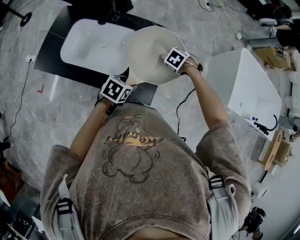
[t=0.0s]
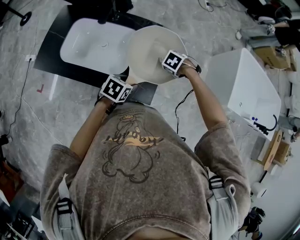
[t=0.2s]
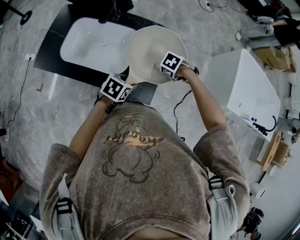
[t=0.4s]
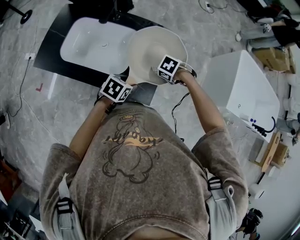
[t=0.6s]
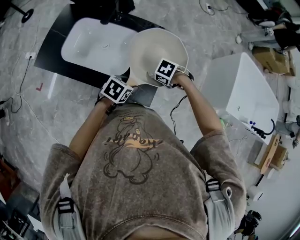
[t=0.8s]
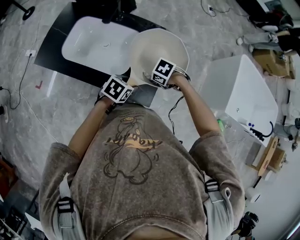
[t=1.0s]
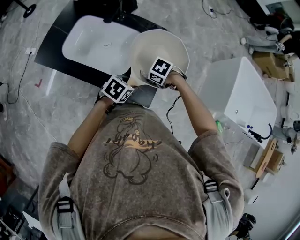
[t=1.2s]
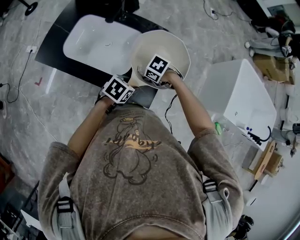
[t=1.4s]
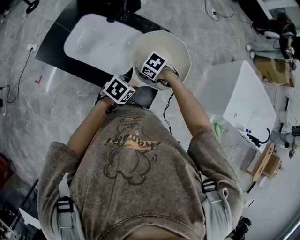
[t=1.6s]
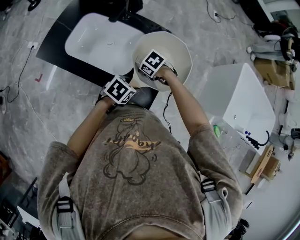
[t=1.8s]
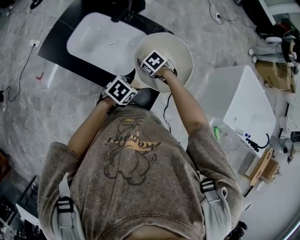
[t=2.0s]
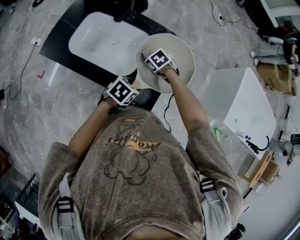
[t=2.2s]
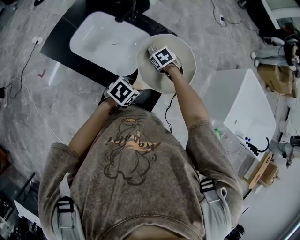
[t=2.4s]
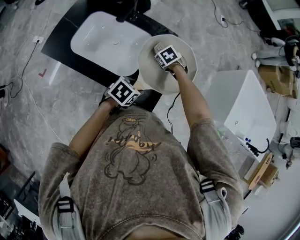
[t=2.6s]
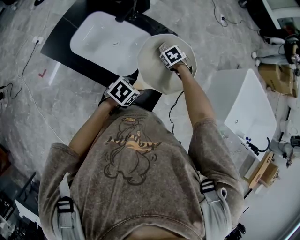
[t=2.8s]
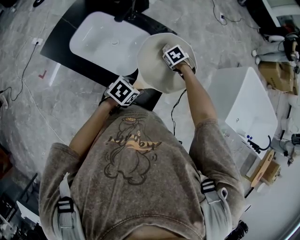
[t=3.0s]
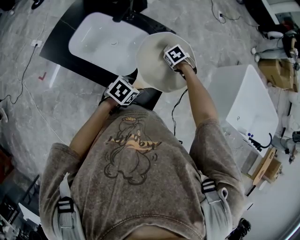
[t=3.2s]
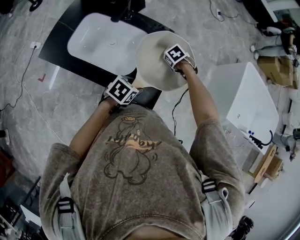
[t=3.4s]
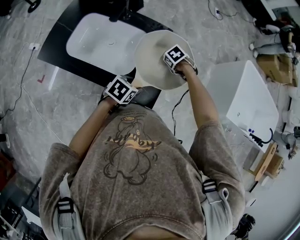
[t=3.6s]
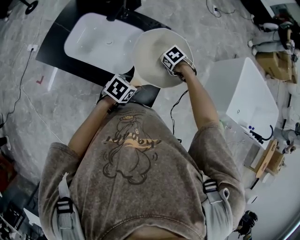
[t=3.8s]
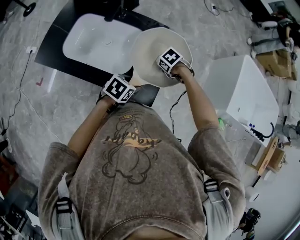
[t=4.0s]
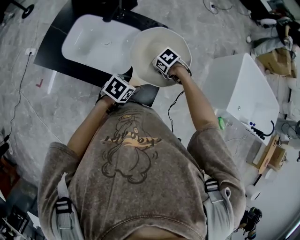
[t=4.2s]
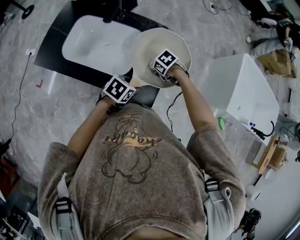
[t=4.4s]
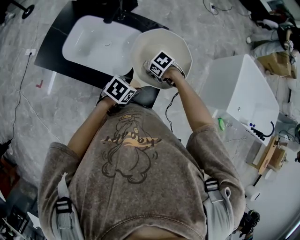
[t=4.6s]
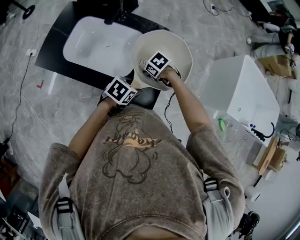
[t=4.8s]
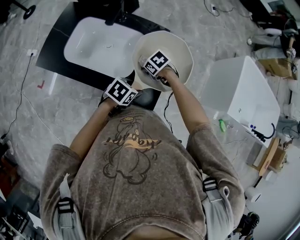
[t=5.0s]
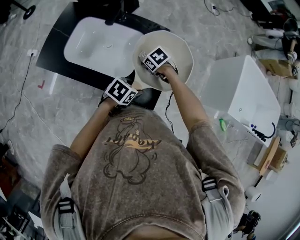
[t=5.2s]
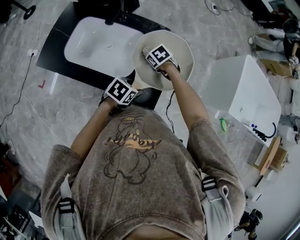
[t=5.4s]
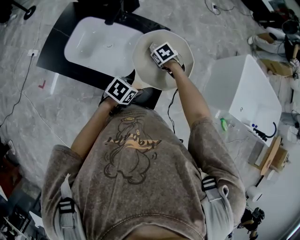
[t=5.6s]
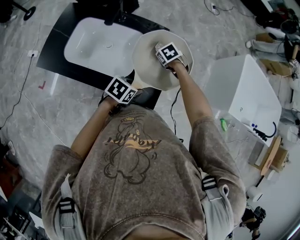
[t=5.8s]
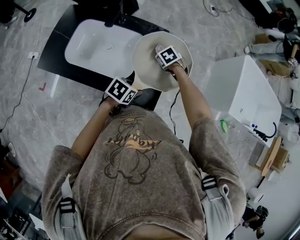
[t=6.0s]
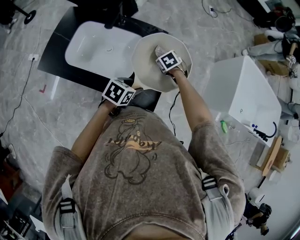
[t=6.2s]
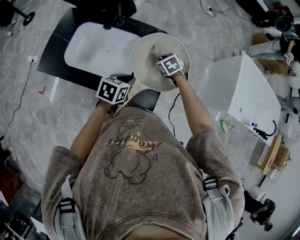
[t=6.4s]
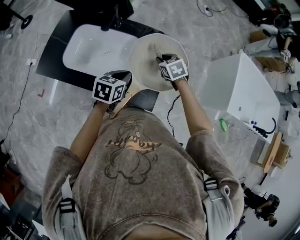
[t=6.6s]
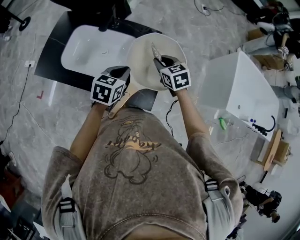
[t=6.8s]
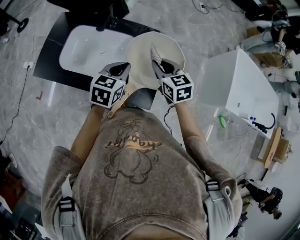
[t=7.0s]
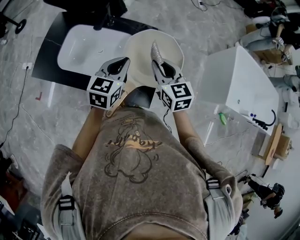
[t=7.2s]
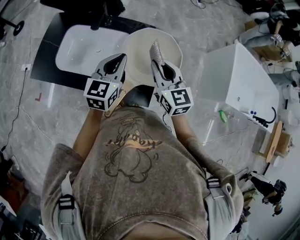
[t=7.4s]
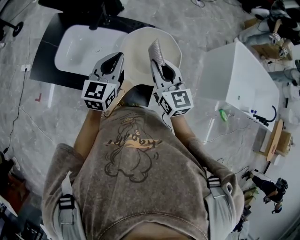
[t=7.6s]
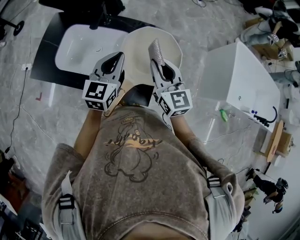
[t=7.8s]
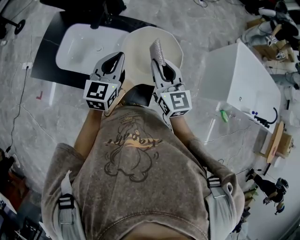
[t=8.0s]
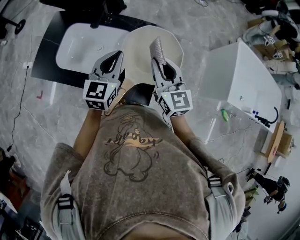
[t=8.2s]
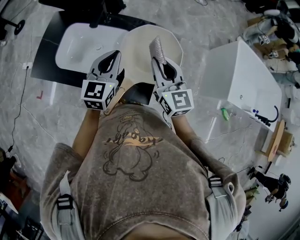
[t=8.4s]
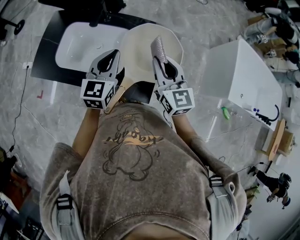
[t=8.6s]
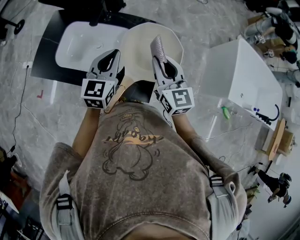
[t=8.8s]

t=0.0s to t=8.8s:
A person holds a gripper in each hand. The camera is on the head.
t=0.0s to t=1.4s: The right gripper changes place by approximately 20 cm, and swivels approximately 30 degrees.
t=1.4s to t=3.0s: The right gripper changes place by roughly 15 cm, and swivels roughly 30 degrees.
t=3.0s to t=4.4s: The right gripper ends up approximately 10 cm from where it was, and swivels some 20 degrees.
t=4.4s to t=5.8s: The right gripper ends up approximately 10 cm from where it was, and swivels roughly 20 degrees.
t=5.8s to t=7.4s: Both grippers travel together upward, approximately 20 cm. The left gripper angles its fingers upward, by about 40 degrees, and closes; the right gripper tilts its fingers approximately 60 degrees upward.
t=7.4s to t=8.8s: There are only small adjustments of the grippers.

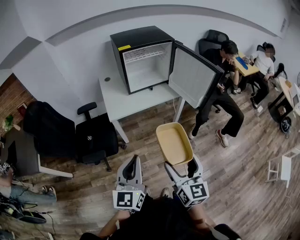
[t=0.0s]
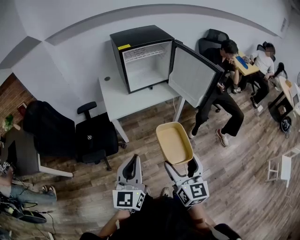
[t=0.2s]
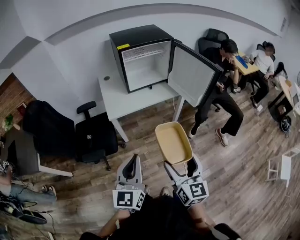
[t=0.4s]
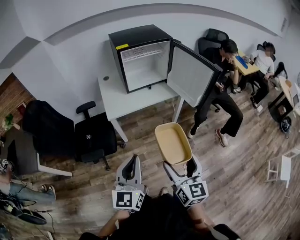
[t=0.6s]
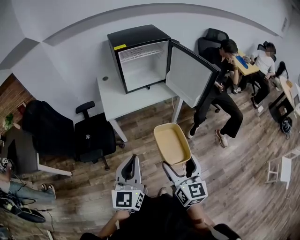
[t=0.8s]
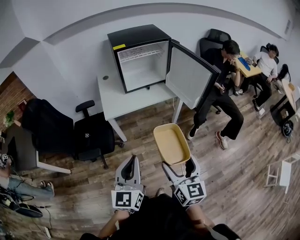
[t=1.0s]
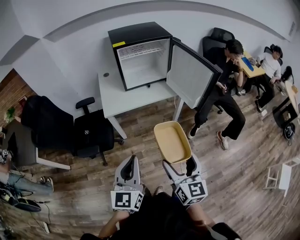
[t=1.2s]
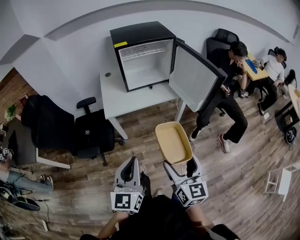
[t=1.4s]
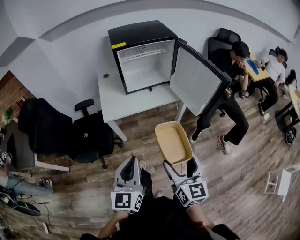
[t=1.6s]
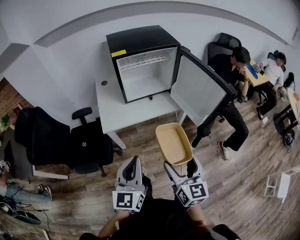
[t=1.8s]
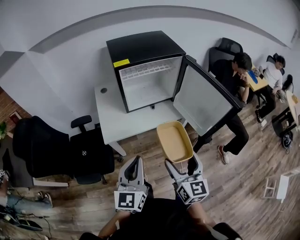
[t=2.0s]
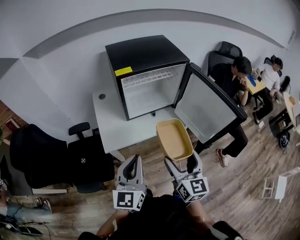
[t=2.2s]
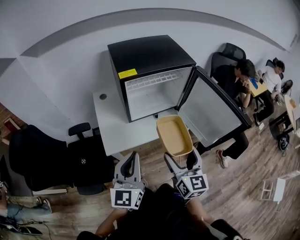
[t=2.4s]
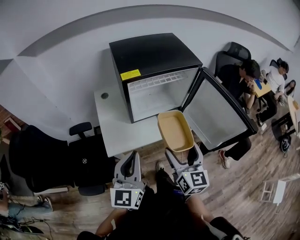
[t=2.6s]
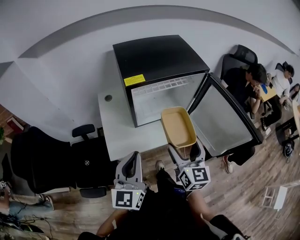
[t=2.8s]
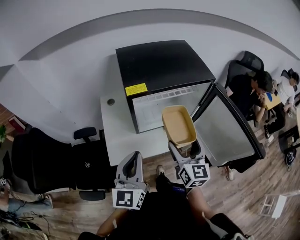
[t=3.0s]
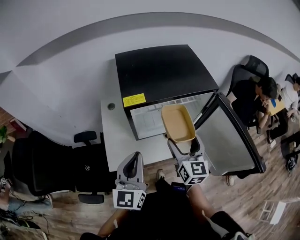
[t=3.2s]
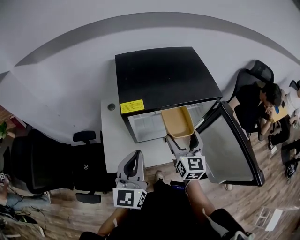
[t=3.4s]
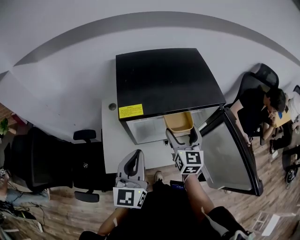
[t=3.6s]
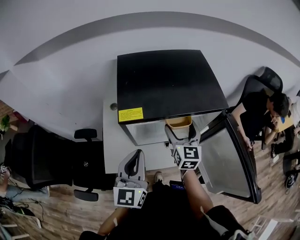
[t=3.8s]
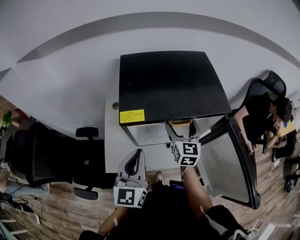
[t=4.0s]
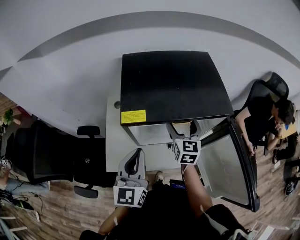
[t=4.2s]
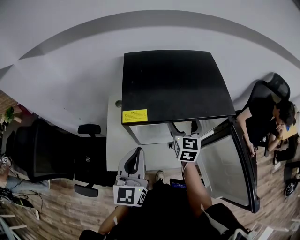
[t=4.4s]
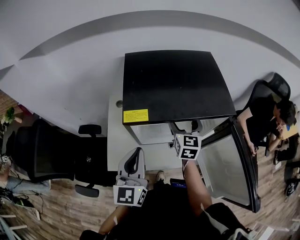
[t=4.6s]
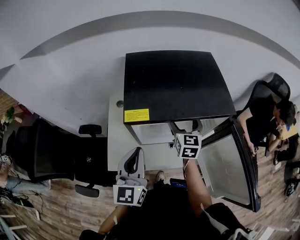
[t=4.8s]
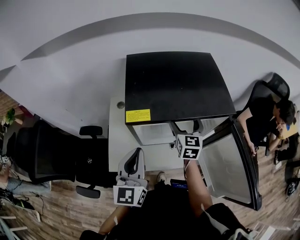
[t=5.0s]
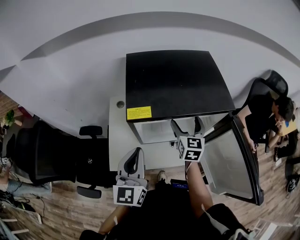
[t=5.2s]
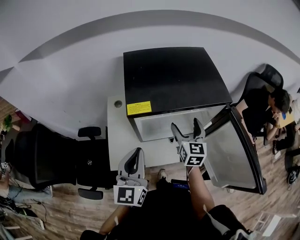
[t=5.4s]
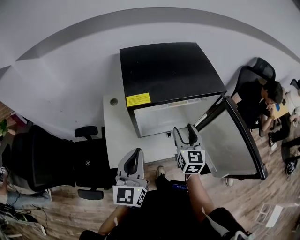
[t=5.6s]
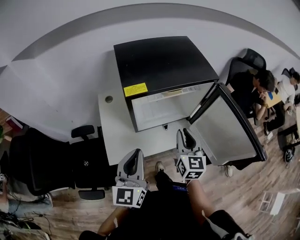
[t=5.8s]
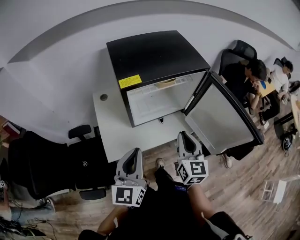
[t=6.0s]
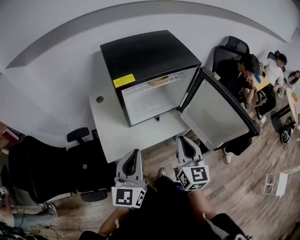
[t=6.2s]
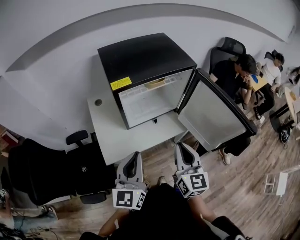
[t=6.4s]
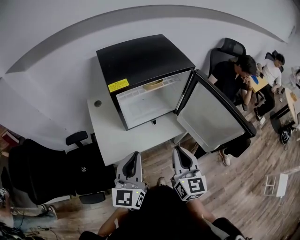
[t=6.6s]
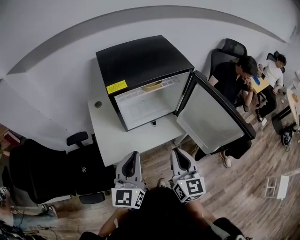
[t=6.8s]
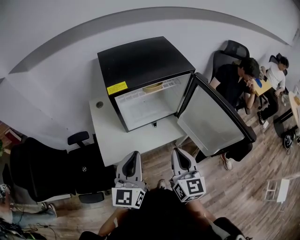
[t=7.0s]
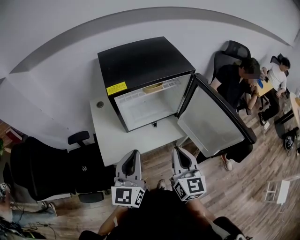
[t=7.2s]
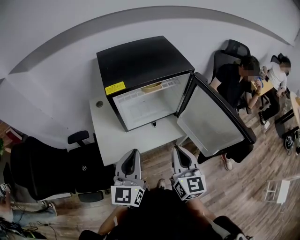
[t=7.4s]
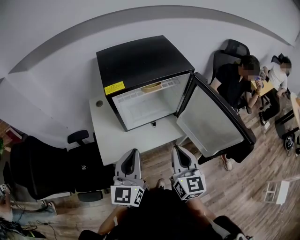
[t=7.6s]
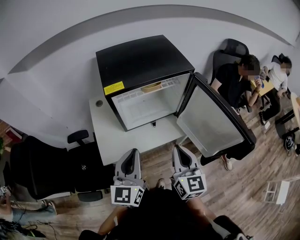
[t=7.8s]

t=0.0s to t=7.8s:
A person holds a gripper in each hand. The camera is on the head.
t=0.0s to t=1.6s: The two grippers go some 10 cm forward and to the right.
t=1.6s to t=3.2s: The pair of grippers is taken forward, roughly 50 cm.
t=3.2s to t=4.6s: The right gripper travels forward by some 20 cm. Meanwhile the left gripper travels forward by some 10 cm.
t=4.6s to t=6.2s: The left gripper is displaced backward by roughly 15 cm, and changes its angle by some 20 degrees. Meanwhile the right gripper travels backward by approximately 35 cm, and closes its fingers.
t=6.2s to t=7.8s: The left gripper shifts by about 5 cm.

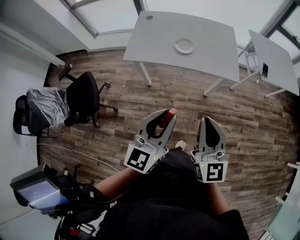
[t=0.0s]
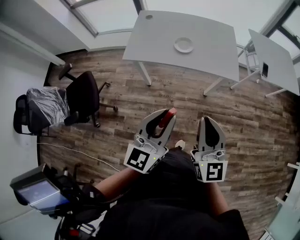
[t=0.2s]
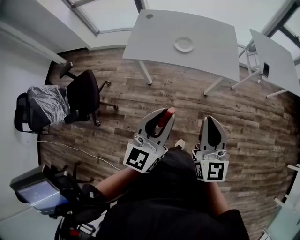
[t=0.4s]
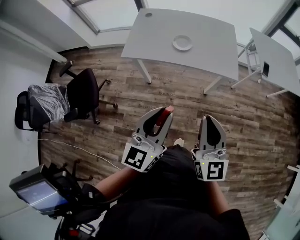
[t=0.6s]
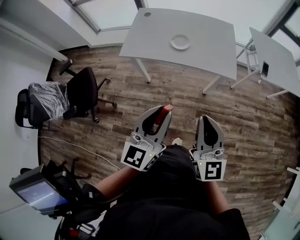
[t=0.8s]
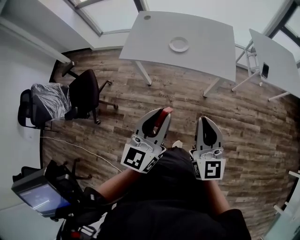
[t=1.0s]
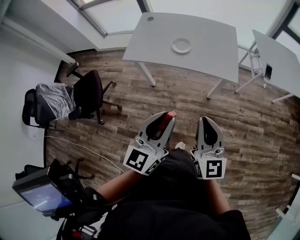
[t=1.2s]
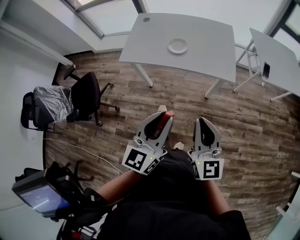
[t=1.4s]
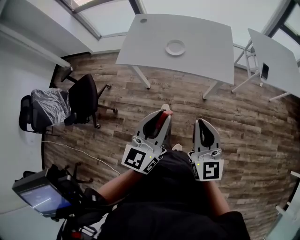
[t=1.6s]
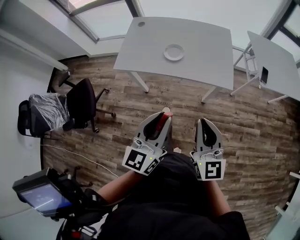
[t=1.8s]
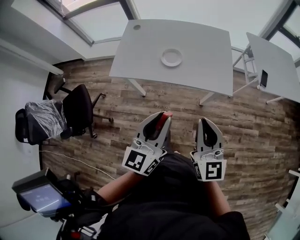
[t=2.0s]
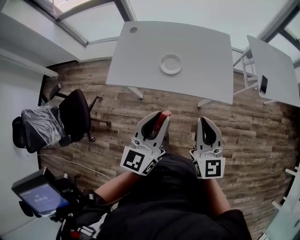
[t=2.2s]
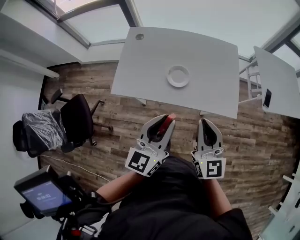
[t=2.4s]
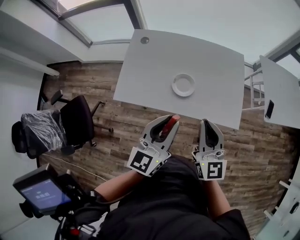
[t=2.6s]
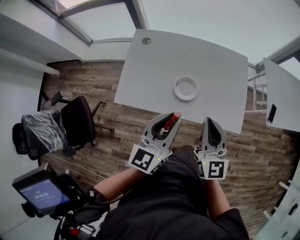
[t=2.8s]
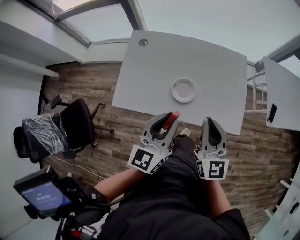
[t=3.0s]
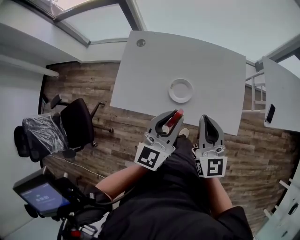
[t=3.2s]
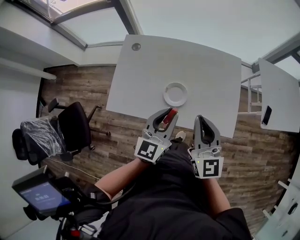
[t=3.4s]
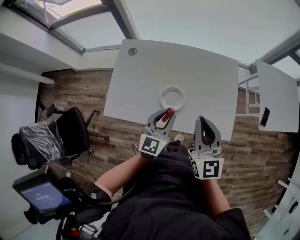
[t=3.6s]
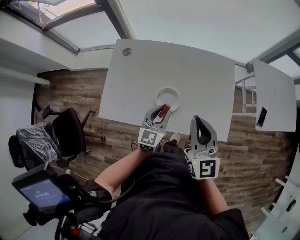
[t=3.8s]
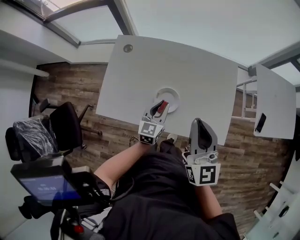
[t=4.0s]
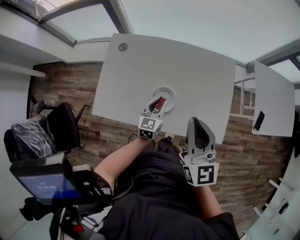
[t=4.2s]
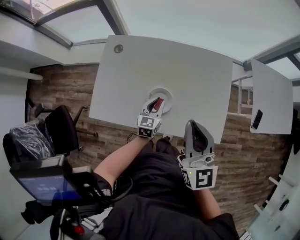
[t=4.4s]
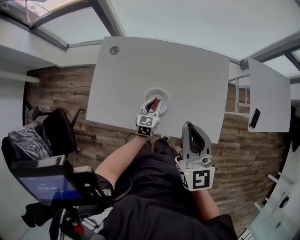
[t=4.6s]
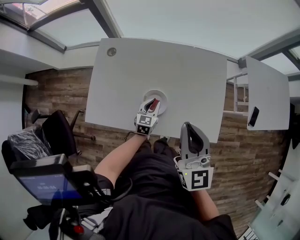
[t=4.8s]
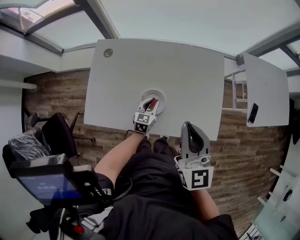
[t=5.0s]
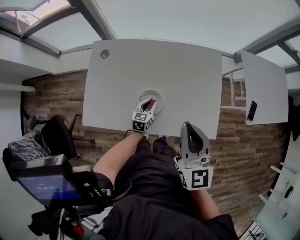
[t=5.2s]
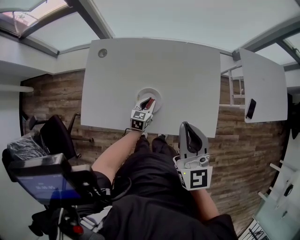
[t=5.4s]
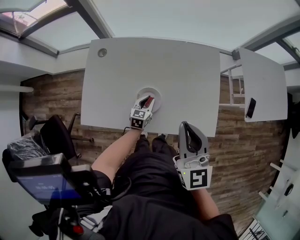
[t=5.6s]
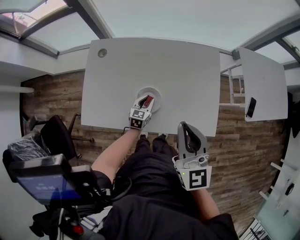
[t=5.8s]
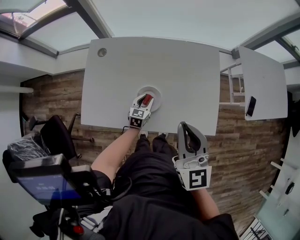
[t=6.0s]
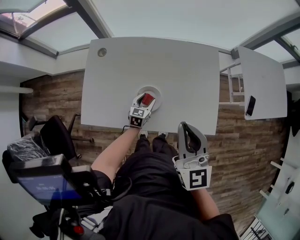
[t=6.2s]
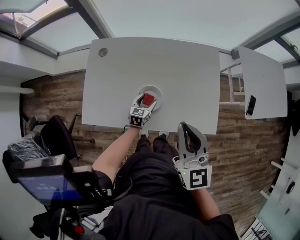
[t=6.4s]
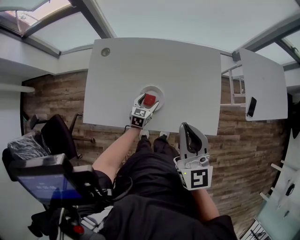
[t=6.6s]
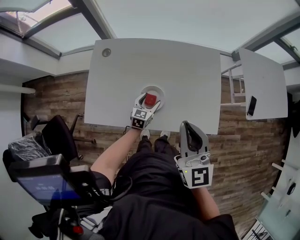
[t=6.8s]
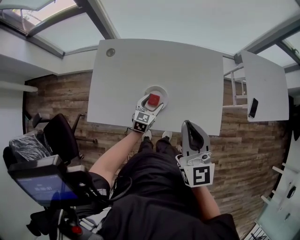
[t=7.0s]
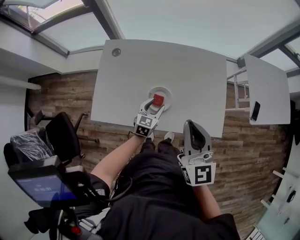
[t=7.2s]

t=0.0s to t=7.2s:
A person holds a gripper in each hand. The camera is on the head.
t=0.0s to t=1.4s: The grippers both shift to the right by approximately 10 cm.
t=1.4s to t=2.8s: Both grippers travel together forward, some 35 cm.
t=2.8s to t=4.4s: The right gripper heads forward, covering roughly 10 cm. The left gripper heads downward and forward, covering roughly 30 cm, and changes its angle by about 20 degrees.
t=4.4s to t=5.8s: The left gripper travels downward by approximately 10 cm.
t=5.8s to t=7.2s: The left gripper is displaced upward by about 5 cm, and opens.
